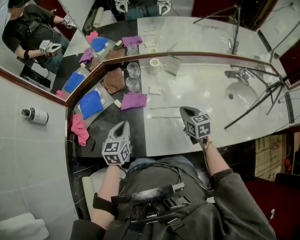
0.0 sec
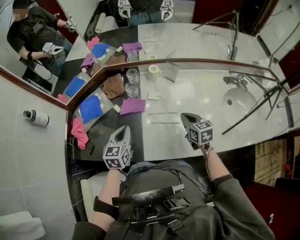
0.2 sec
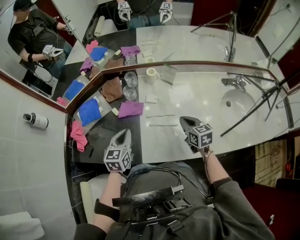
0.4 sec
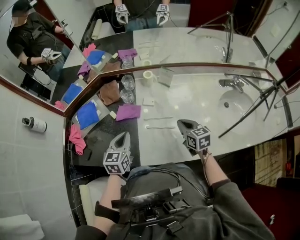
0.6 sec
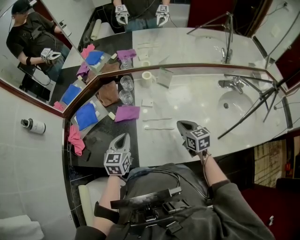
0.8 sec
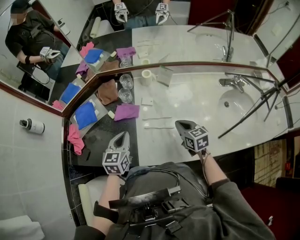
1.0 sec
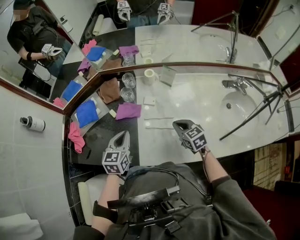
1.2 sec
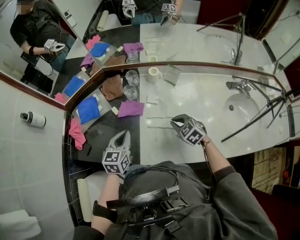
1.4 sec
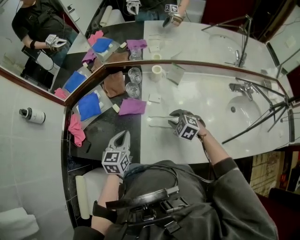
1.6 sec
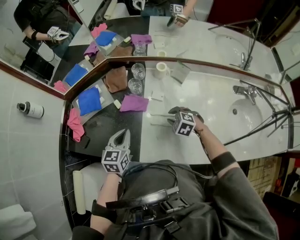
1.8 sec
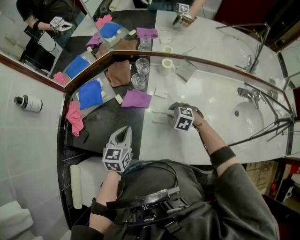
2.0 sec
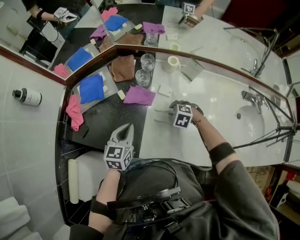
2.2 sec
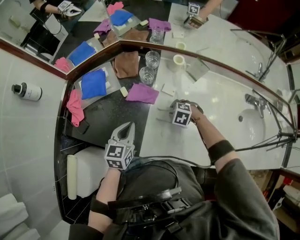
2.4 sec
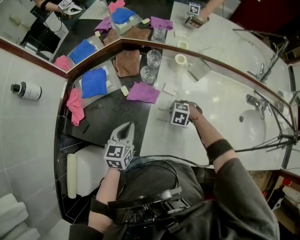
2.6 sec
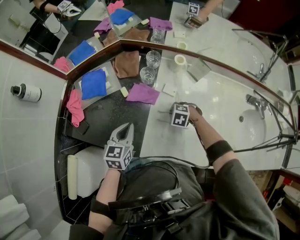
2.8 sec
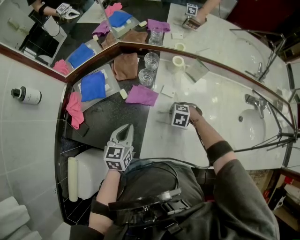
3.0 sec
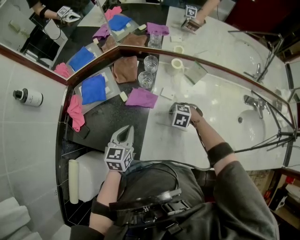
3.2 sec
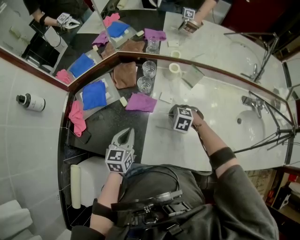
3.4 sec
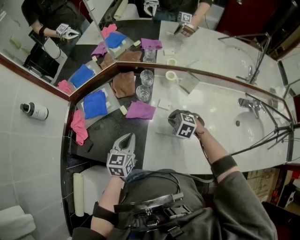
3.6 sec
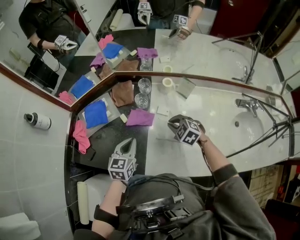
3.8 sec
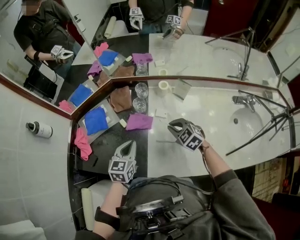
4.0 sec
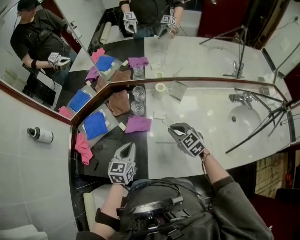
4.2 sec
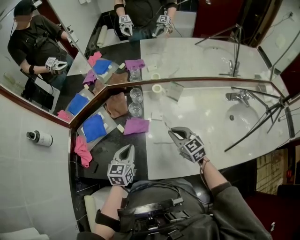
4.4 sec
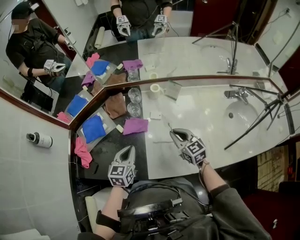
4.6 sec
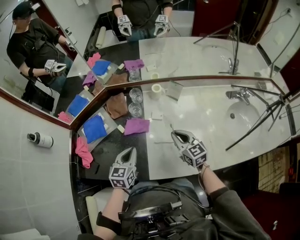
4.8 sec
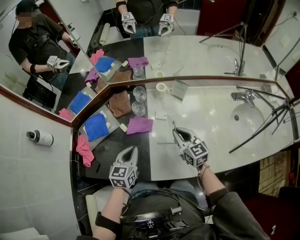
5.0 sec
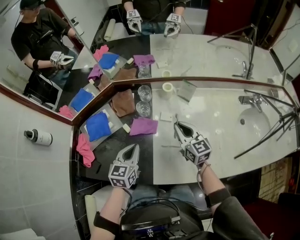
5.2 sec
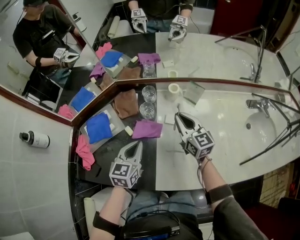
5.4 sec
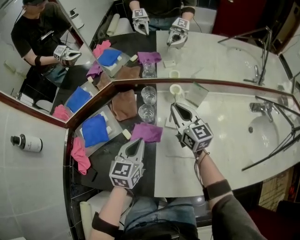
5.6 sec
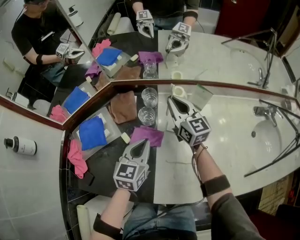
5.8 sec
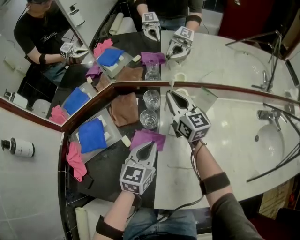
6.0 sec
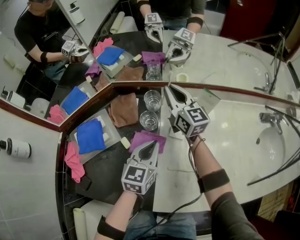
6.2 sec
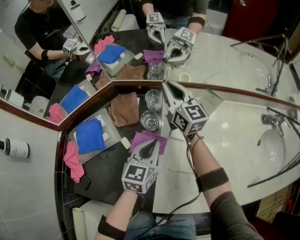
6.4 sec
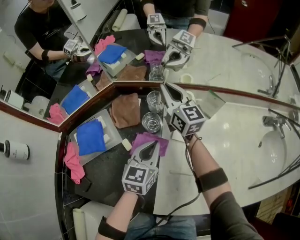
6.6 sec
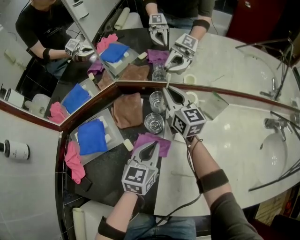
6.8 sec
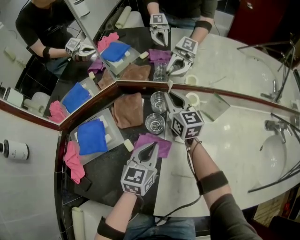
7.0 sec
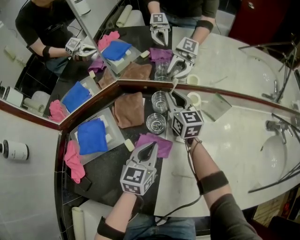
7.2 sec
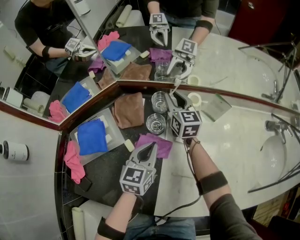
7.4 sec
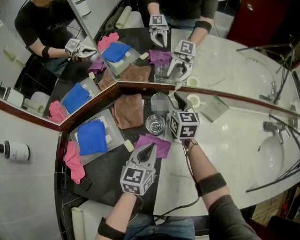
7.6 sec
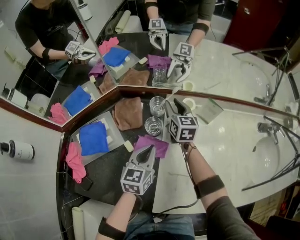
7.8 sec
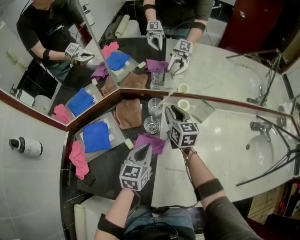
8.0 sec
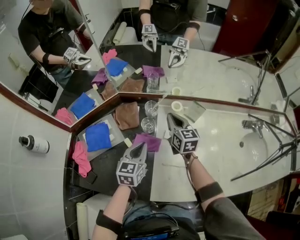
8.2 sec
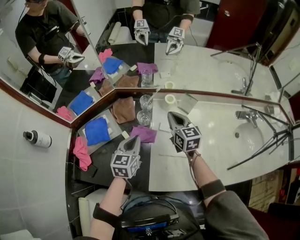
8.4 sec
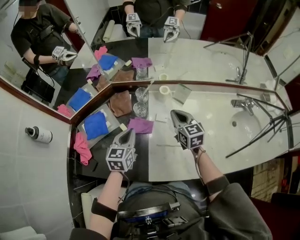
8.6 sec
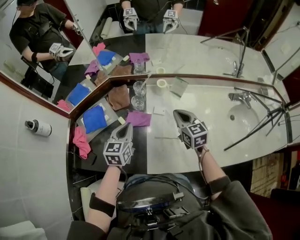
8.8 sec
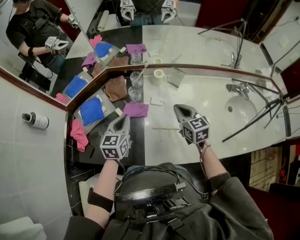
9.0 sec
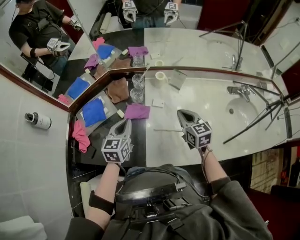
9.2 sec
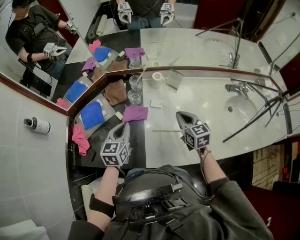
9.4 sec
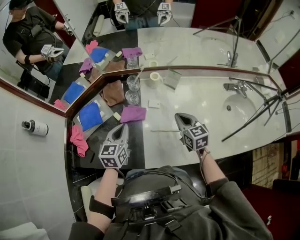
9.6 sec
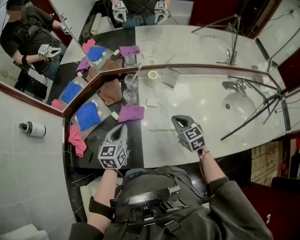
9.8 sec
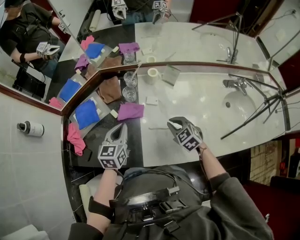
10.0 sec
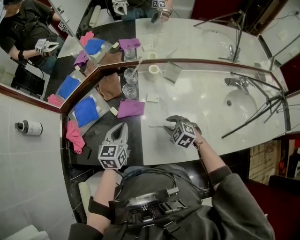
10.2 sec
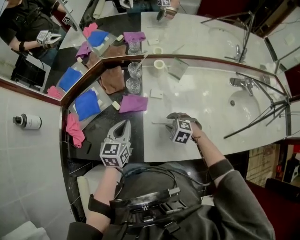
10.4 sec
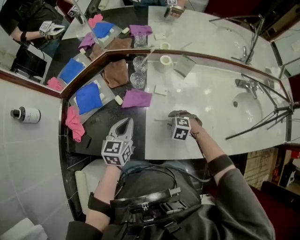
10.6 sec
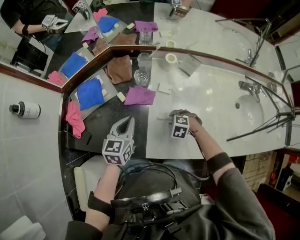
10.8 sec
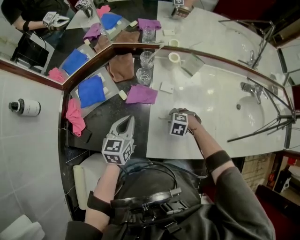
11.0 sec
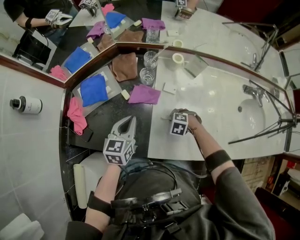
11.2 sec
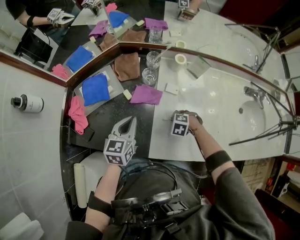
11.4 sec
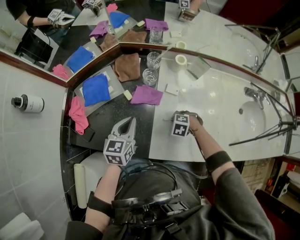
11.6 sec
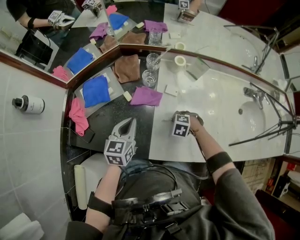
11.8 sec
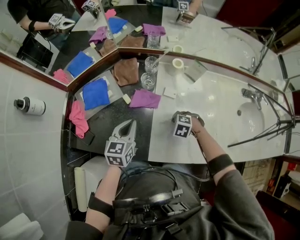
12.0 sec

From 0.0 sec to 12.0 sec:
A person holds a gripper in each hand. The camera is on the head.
From 0.0 sec to 1.6 sec: The right gripper moves downward, roughly 5 cm, twists about 50 degrees counterclockwise, seen from behind, and opens its fingers.
From 1.6 sec to 3.0 sec: The right gripper shifts about 10 cm downward, and rotates about 30 degrees.
From 3.0 sec to 4.4 sec: The right gripper travels upward by some 20 cm, and angles its fingers upward, by roughly 50 degrees.
From 4.4 sec to 6.0 sec: The left gripper shifts some 15 cm forward, downward and to the right. The right gripper moves forward, approximately 25 cm, and turns by some 30 degrees.
From 6.0 sec to 7.6 sec: The right gripper shifts some 10 cm downward and forward, and opens, while the left gripper moves about 5 cm.
From 7.6 sec to 9.0 sec: The right gripper goes approximately 35 cm backward, upward and to the right, and closes up, while the left gripper goes some 15 cm upward and backward.
From 9.0 sec to 10.4 sec: The right gripper moves downward, roughly 20 cm, angles its fingers downward, by some 40 degrees, and opens its fingers.
From 10.4 sec to 12.0 sec: The right gripper closes its fingers.

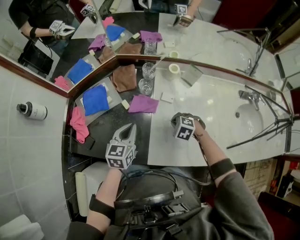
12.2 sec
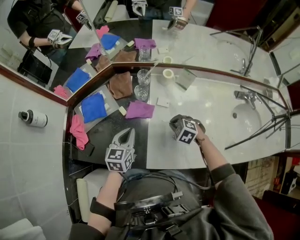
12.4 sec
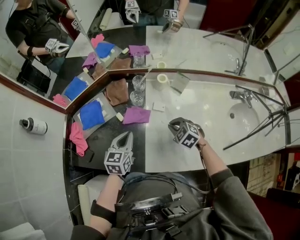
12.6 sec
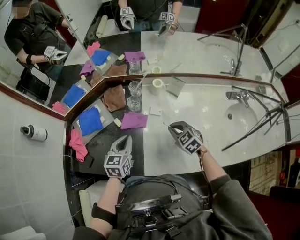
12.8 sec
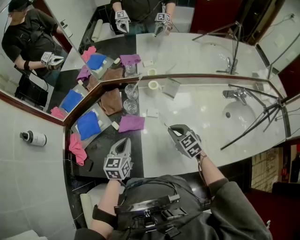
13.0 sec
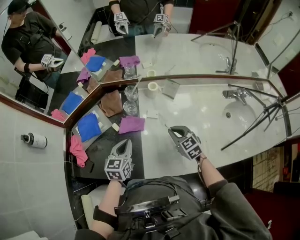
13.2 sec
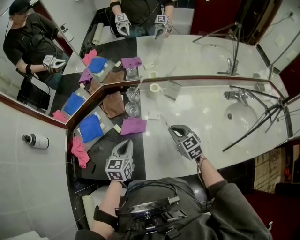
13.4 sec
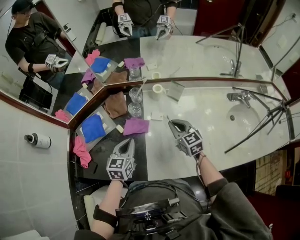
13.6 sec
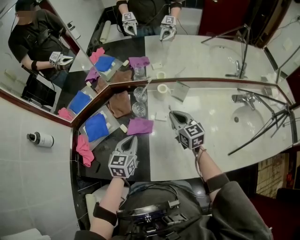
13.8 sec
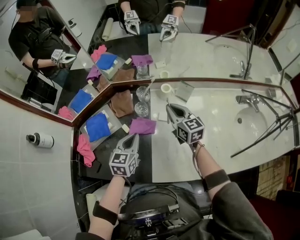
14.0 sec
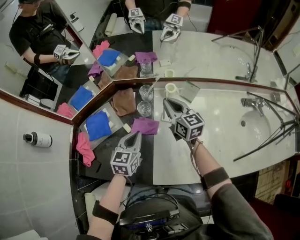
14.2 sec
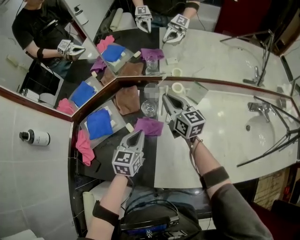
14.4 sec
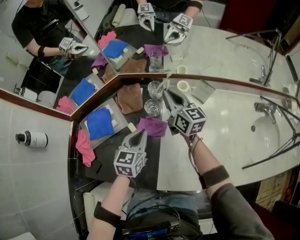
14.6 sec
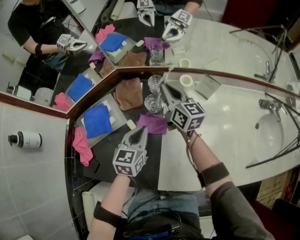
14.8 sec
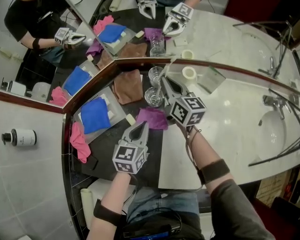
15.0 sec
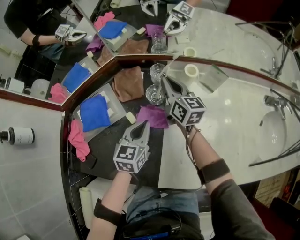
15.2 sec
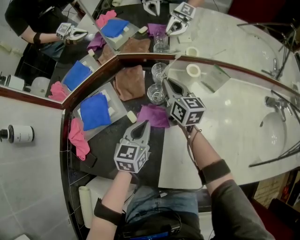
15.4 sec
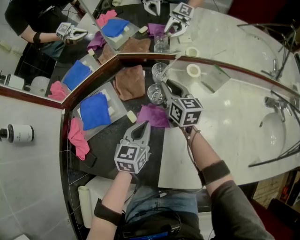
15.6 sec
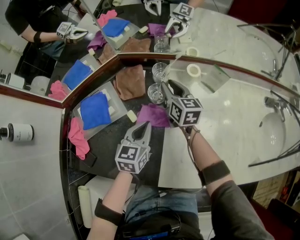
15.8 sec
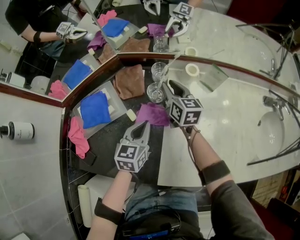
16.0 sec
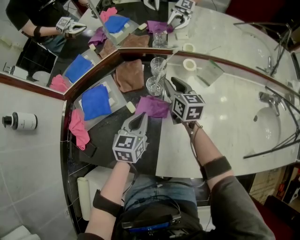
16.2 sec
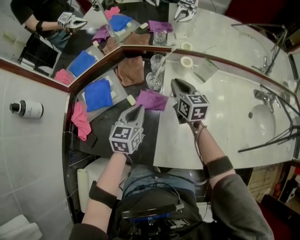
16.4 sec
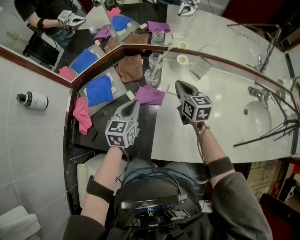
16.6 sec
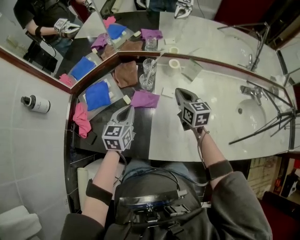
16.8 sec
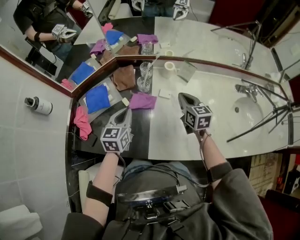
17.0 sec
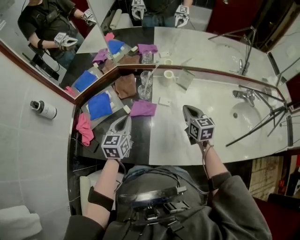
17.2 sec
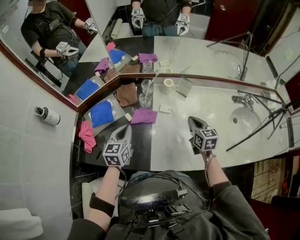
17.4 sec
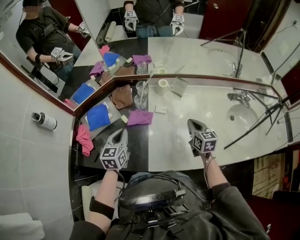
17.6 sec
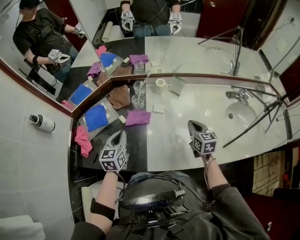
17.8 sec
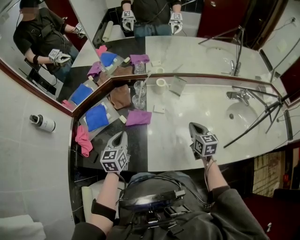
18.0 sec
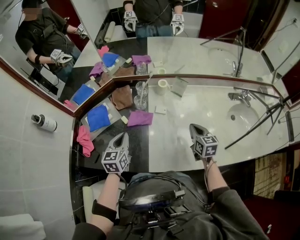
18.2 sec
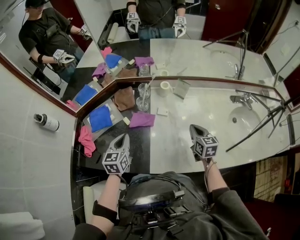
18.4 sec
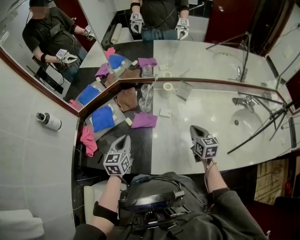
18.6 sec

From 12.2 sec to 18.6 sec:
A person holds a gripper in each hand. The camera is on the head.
From 12.2 sec to 13.8 sec: The left gripper changes place by approximately 5 cm; the right gripper heads upward and forward, covering some 20 cm, and points its fingers roughly 50 degrees further upward.
From 13.8 sec to 15.4 sec: The right gripper shifts some 20 cm forward, to the left and downward, while the left gripper travels downward and forward by roughly 10 cm.
From 15.4 sec to 17.0 sec: The right gripper moves backward, to the right and upward, some 25 cm, and opens and closes again; the left gripper travels upward and backward by roughly 15 cm.
From 17.0 sec to 18.6 sec: The right gripper moves backward and to the right, approximately 10 cm.

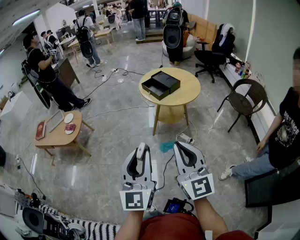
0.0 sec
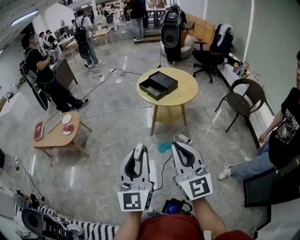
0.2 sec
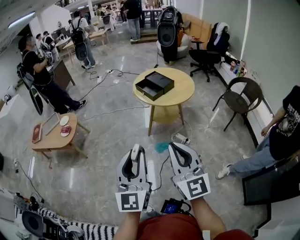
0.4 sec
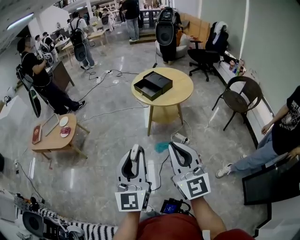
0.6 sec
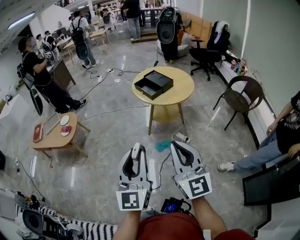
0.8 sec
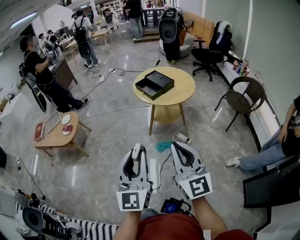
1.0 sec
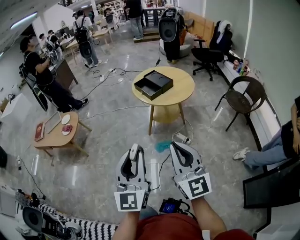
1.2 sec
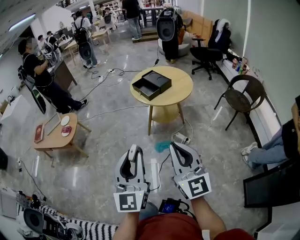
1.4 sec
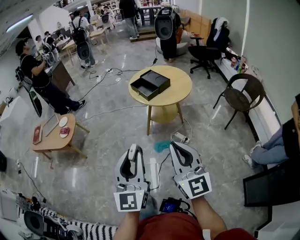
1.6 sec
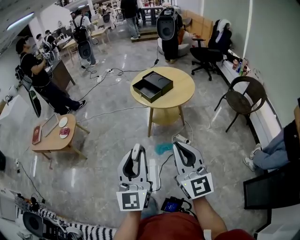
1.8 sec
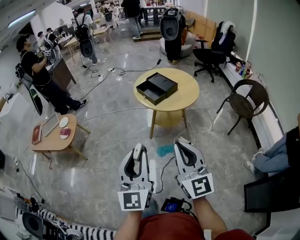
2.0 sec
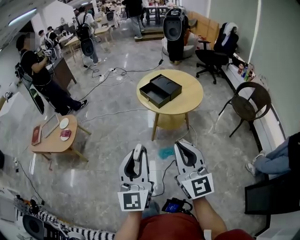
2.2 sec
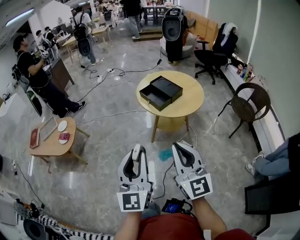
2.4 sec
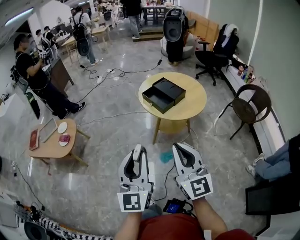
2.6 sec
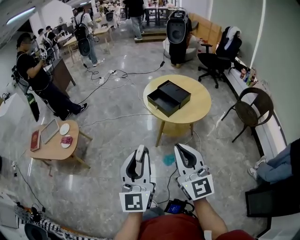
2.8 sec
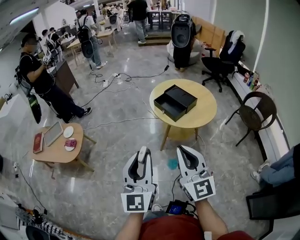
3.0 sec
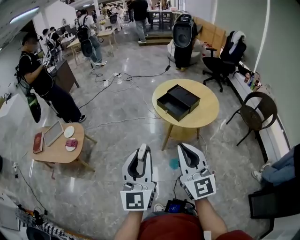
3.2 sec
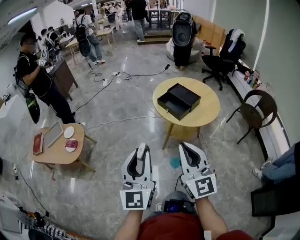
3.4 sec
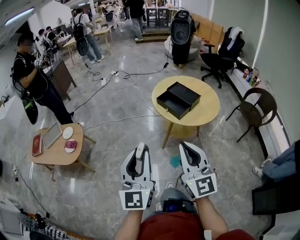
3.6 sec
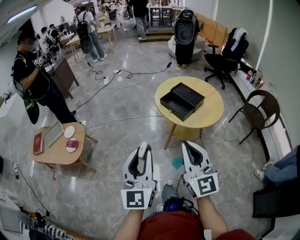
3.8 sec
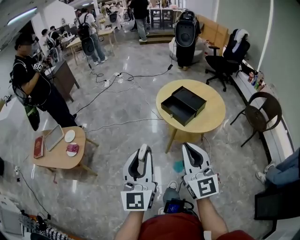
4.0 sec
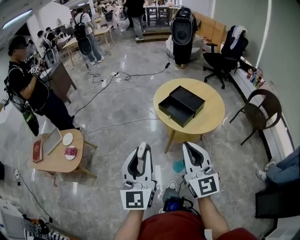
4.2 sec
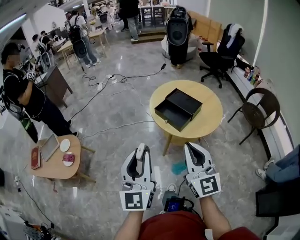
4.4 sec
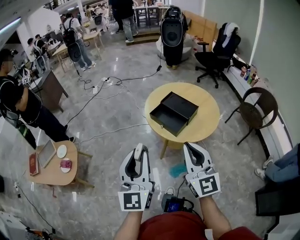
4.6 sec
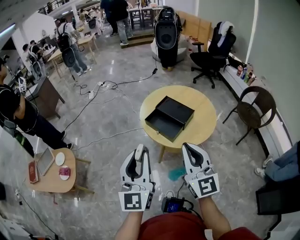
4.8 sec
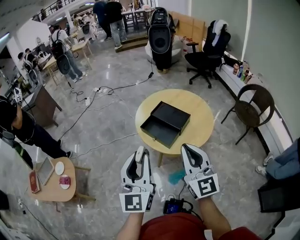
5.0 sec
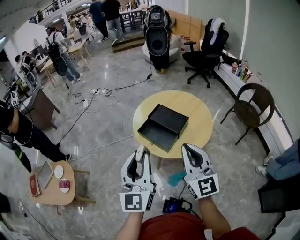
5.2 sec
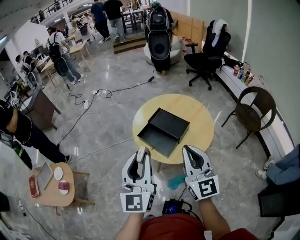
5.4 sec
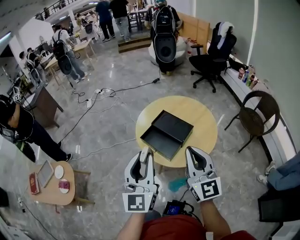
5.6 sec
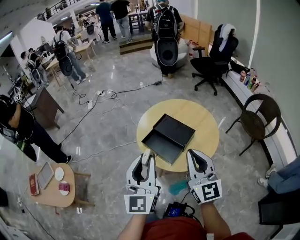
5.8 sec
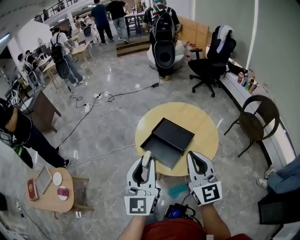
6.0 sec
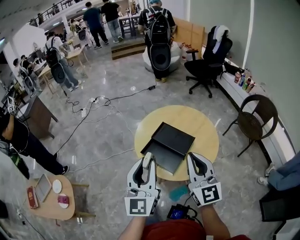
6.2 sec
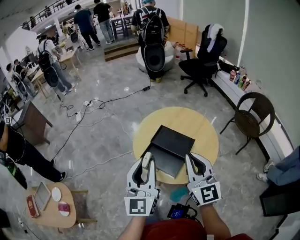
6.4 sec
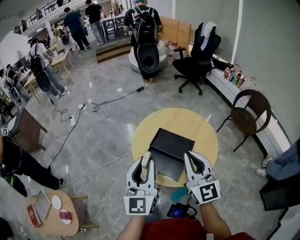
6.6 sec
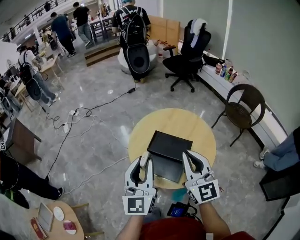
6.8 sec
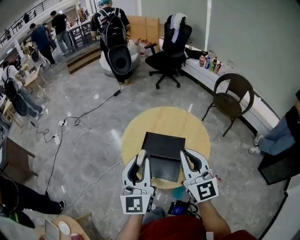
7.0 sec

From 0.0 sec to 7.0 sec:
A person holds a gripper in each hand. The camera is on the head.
From 0.0 sec to 1.4 sec: Both grippers move to the right, approximately 5 cm.
From 1.4 sec to 2.8 sec: The grippers both shift forward and to the left by about 25 cm.
From 2.8 sec to 4.2 sec: The right gripper goes about 15 cm forward. The left gripper goes some 15 cm forward and to the left.
From 4.2 sec to 5.6 sec: Both grippers travel together forward and to the right, approximately 30 cm.
From 5.6 sec to 7.0 sec: The two grippers go approximately 20 cm forward. The right gripper swivels about 20 degrees. Meanwhile the left gripper rotates some 20 degrees.
